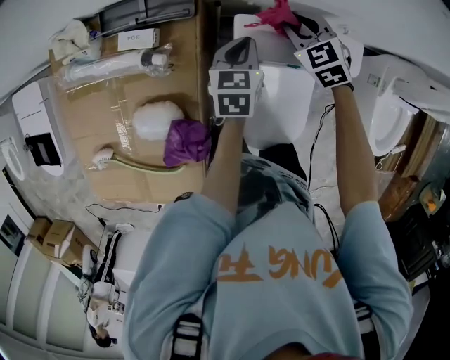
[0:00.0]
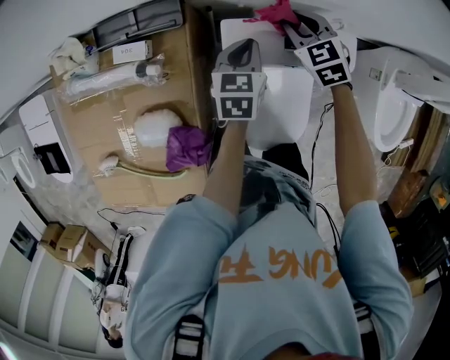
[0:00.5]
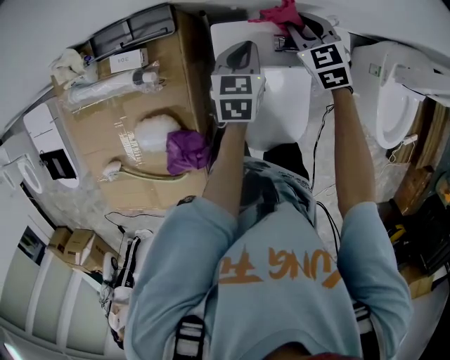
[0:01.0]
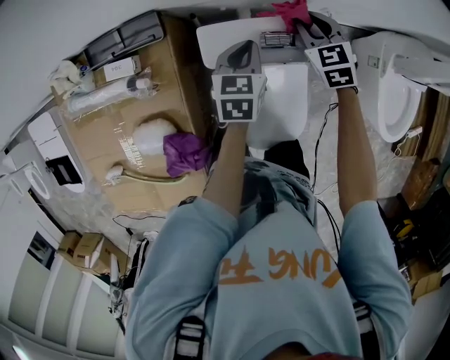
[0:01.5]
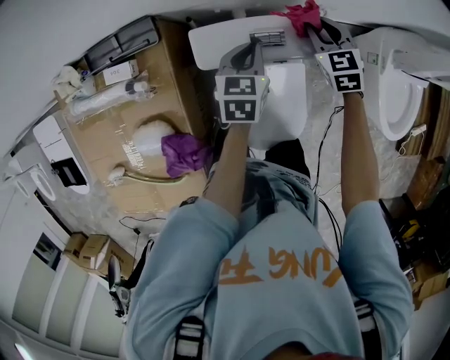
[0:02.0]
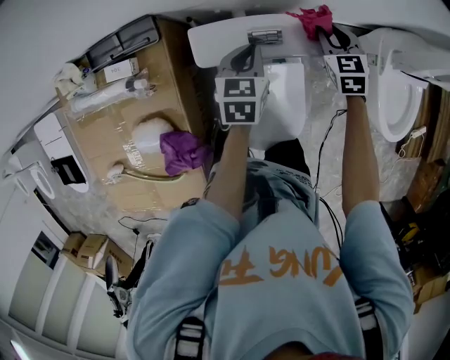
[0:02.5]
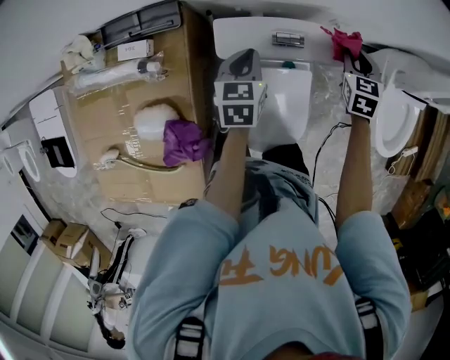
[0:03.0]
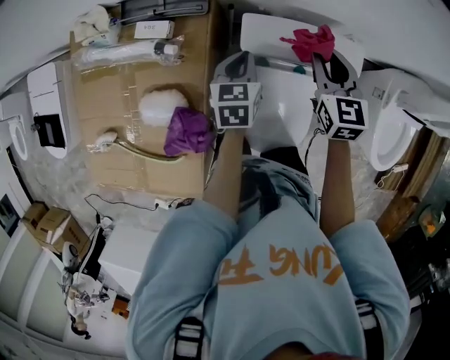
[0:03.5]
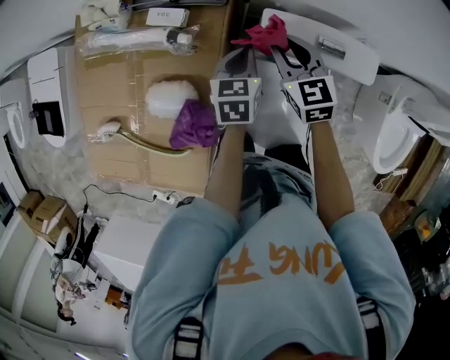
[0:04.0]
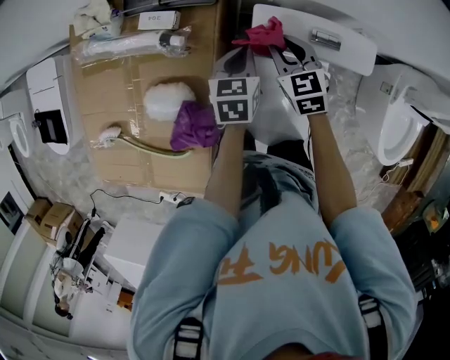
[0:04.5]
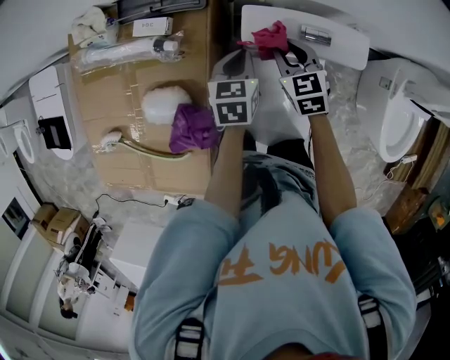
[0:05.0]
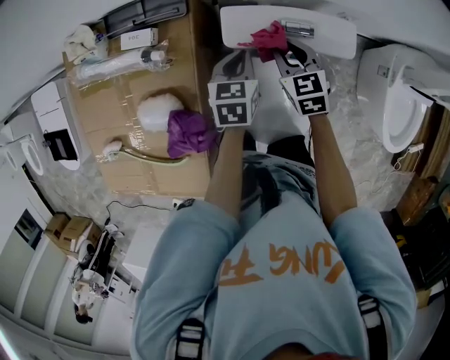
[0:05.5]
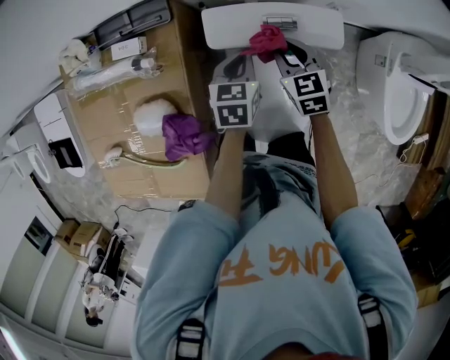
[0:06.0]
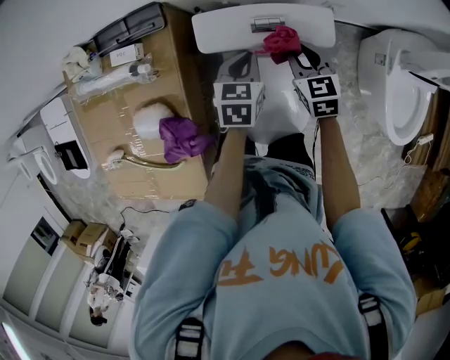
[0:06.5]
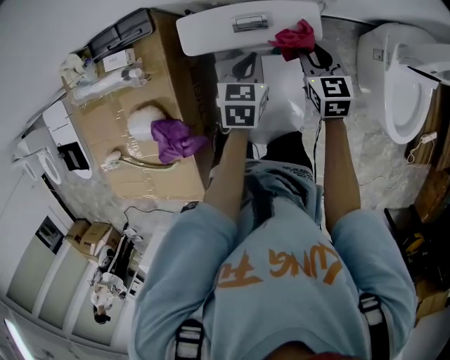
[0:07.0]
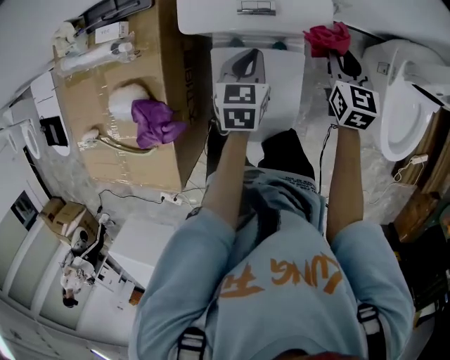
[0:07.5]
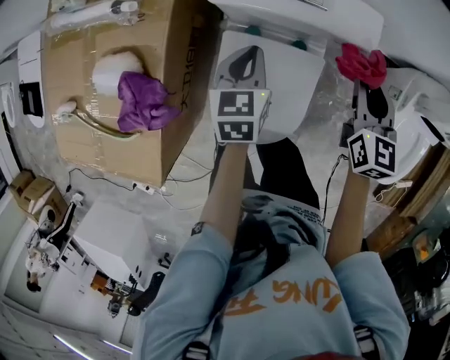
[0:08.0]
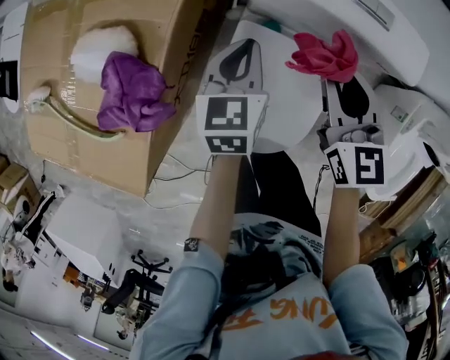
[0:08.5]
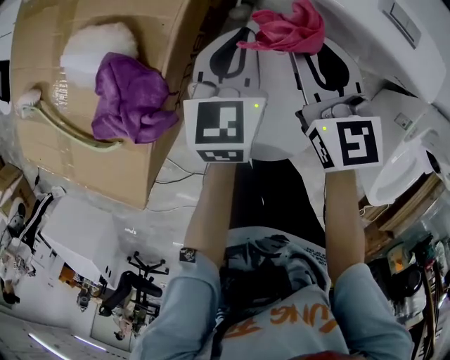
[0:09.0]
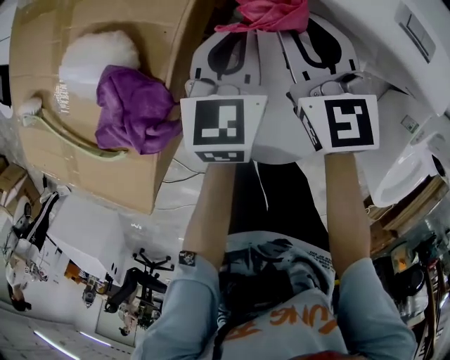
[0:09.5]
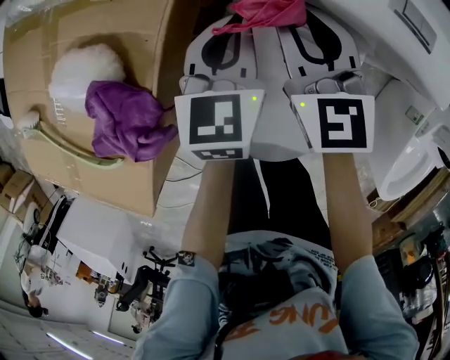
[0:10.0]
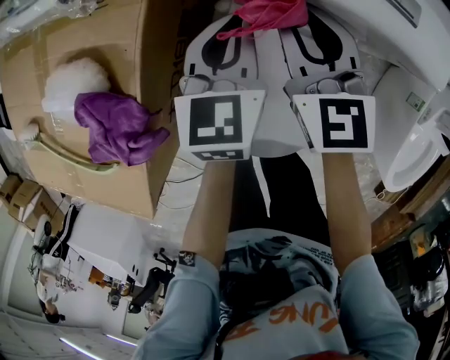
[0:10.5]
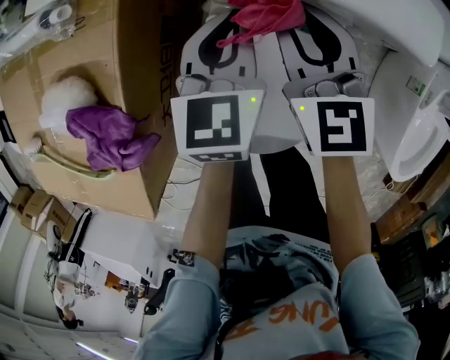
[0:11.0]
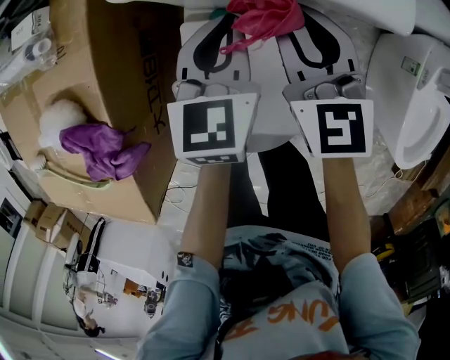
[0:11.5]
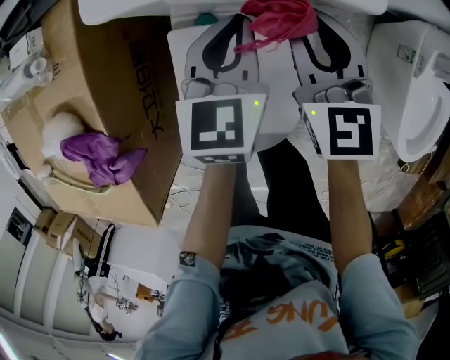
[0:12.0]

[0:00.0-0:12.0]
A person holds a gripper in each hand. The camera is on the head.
0:00.0 to 0:02.0: The right gripper is displaced to the right by some 20 cm, and swivels some 20 degrees. The left gripper goes some 15 cm to the right.
0:02.0 to 0:04.0: The right gripper moves some 30 cm, and turns by some 20 degrees. The left gripper shifts by about 20 cm, and changes its angle by approximately 20 degrees.
0:04.0 to 0:06.0: The two grippers go approximately 15 cm to the right.
0:06.0 to 0:08.0: The left gripper shifts approximately 10 cm backward and downward, and reaches roughly 10 cm to the right, then returns. Meanwhile the right gripper shifts roughly 15 cm to the right.
0:08.0 to 0:10.0: The left gripper heads to the left, forward and downward, covering some 15 cm. Meanwhile the right gripper moves to the left and forward, about 30 cm, and changes its angle by some 30 degrees.
0:10.0 to 0:12.0: Both grippers travel together to the right, about 20 cm.

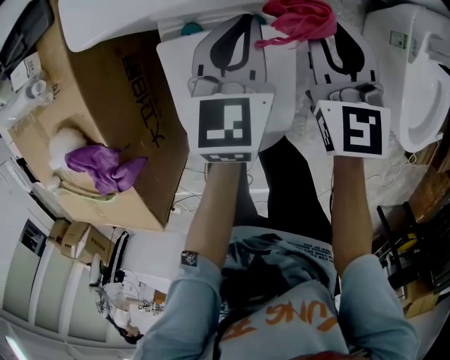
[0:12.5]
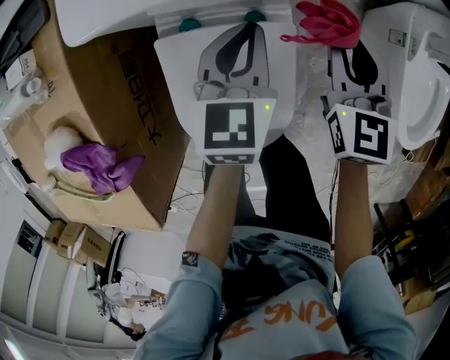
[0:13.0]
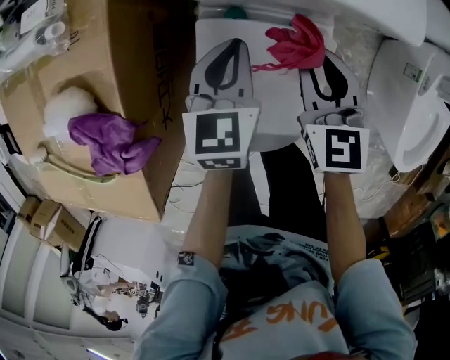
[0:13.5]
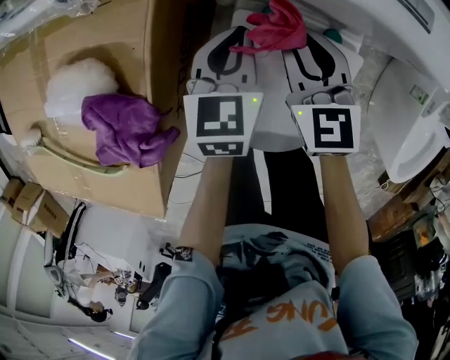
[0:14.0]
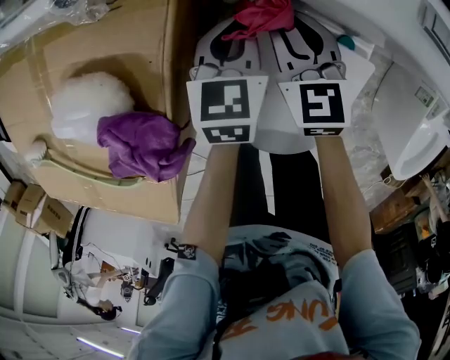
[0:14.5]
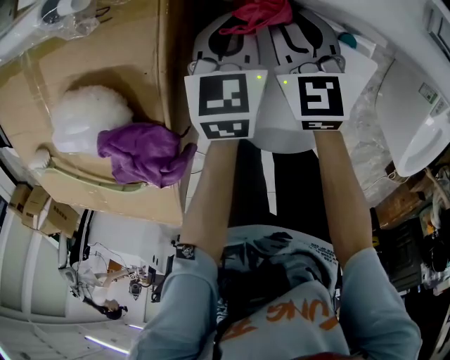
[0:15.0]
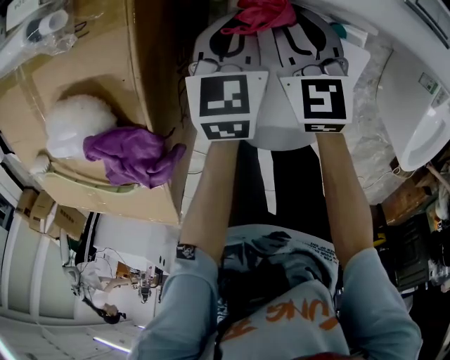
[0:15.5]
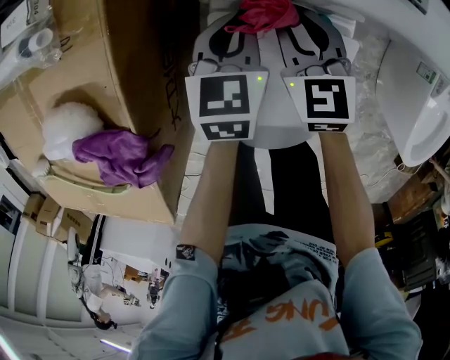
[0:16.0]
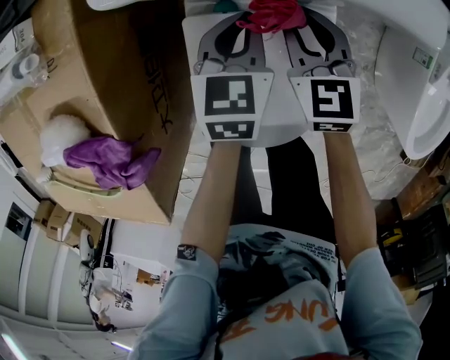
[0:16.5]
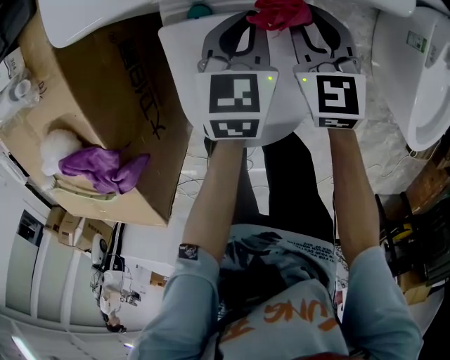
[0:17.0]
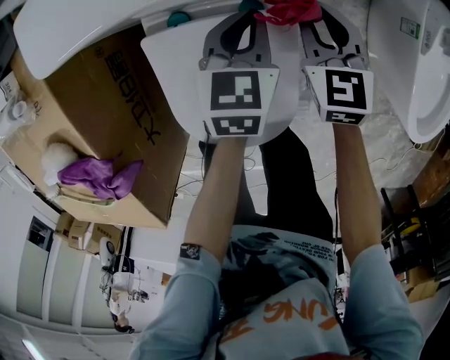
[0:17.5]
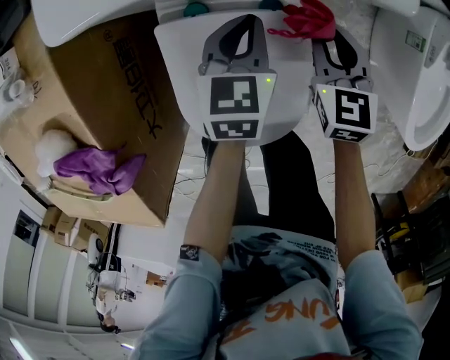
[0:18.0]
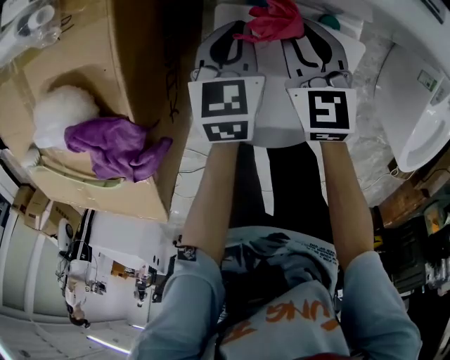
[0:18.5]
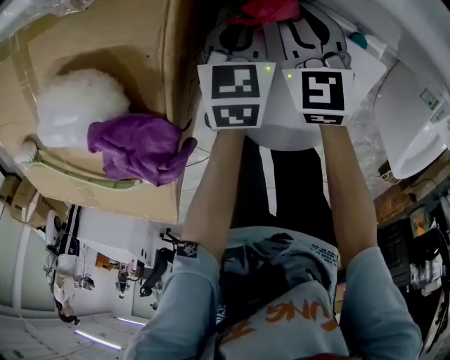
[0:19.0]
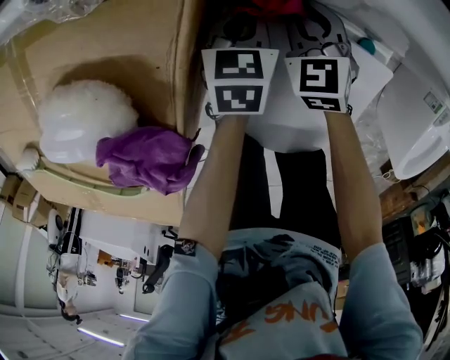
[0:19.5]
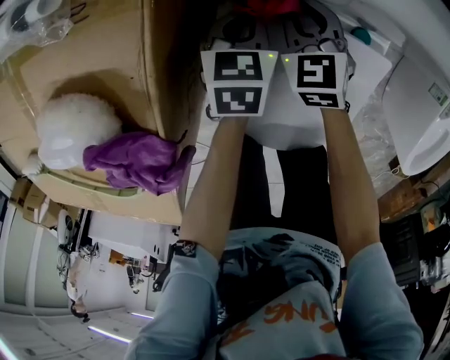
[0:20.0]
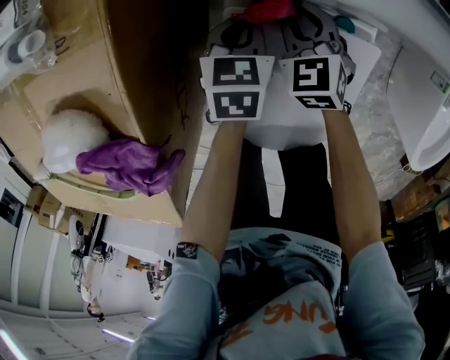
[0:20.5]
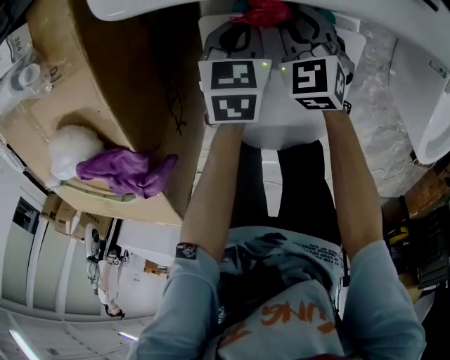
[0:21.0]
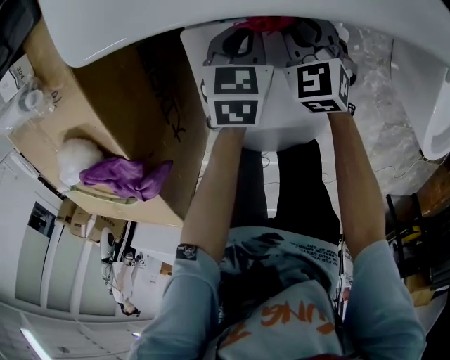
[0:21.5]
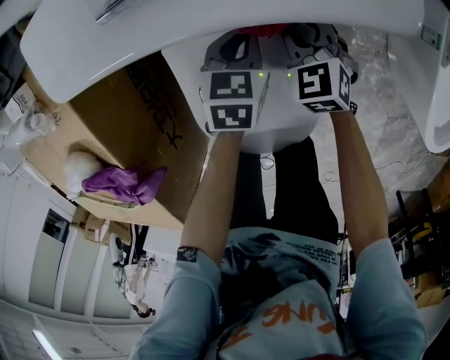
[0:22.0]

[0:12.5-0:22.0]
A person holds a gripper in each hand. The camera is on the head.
0:12.5 to 0:14.5: Both grippers move to the left, approximately 30 cm. The left gripper swivels roughly 20 degrees. The right gripper turns by about 30 degrees.
0:14.5 to 0:16.5: The grippers both shift to the right by roughly 15 cm.
0:16.5 to 0:18.0: The left gripper shifts approximately 5 cm to the right; the right gripper moves to the right, about 10 cm.
0:18.0 to 0:20.0: Both grippers travel together to the left, some 25 cm. The right gripper rotates approximately 30 degrees.
0:20.0 to 0:22.0: Both grippers travel together to the right, about 20 cm. The left gripper changes its angle by roughly 20 degrees.

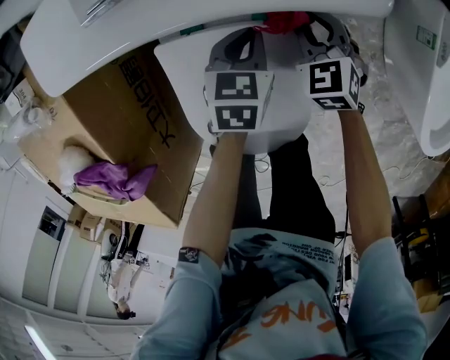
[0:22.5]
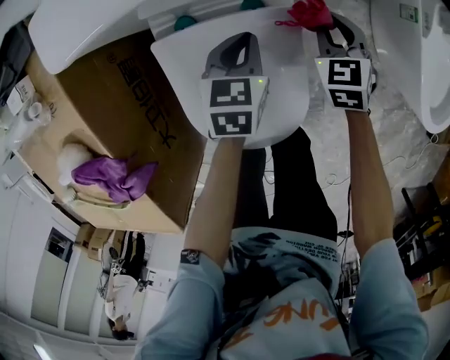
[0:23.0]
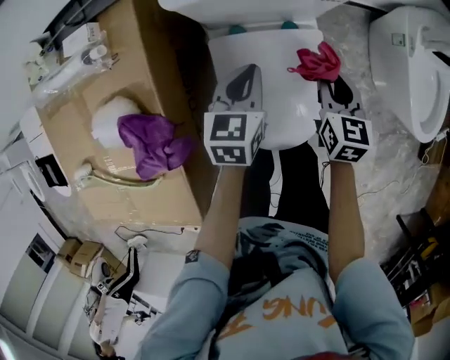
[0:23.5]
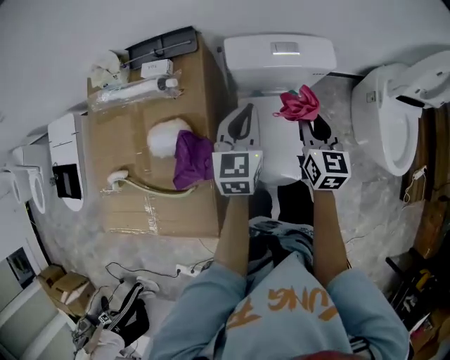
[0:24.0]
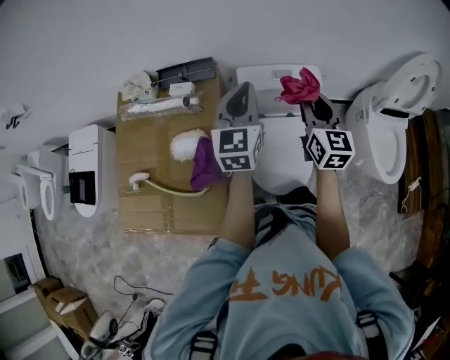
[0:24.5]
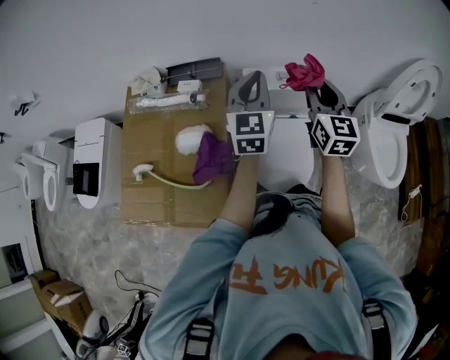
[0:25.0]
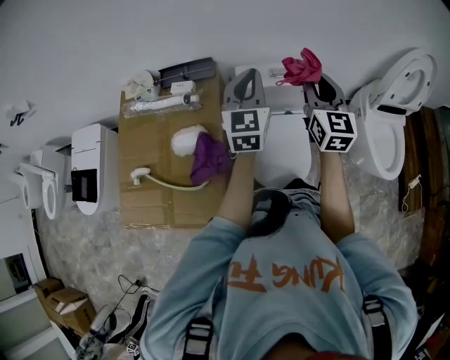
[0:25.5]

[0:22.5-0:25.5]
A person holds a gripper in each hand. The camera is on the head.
0:22.5 to 0:24.0: The left gripper heads upward and to the left, covering approximately 40 cm, and points its fingers some 30 degrees further upward. Meanwhile the right gripper goes roughly 40 cm upward and backward, and turns by approximately 40 degrees.
0:24.0 to 0:25.5: Both grippers travel together upward, some 20 cm. The left gripper swivels roughly 20 degrees. Meanwhile the right gripper turns by about 20 degrees.

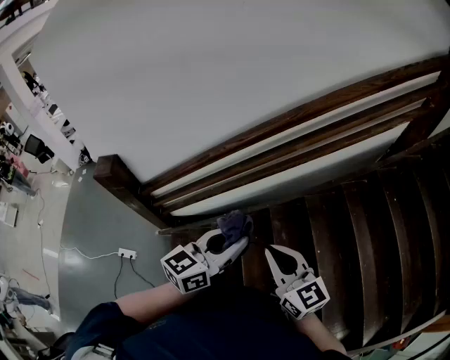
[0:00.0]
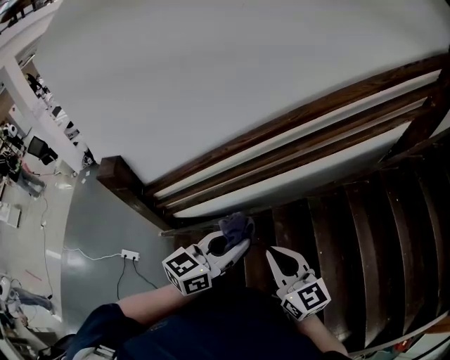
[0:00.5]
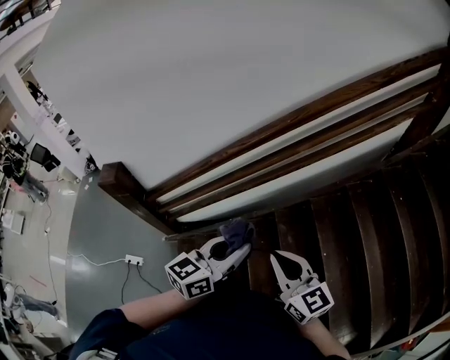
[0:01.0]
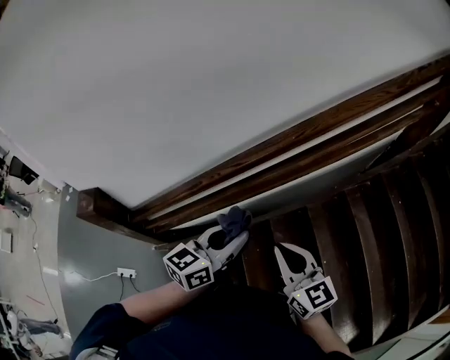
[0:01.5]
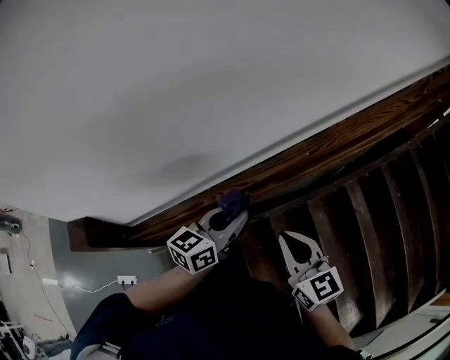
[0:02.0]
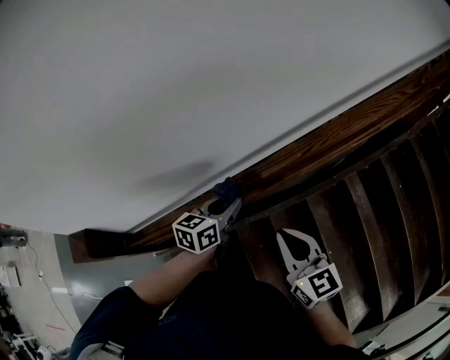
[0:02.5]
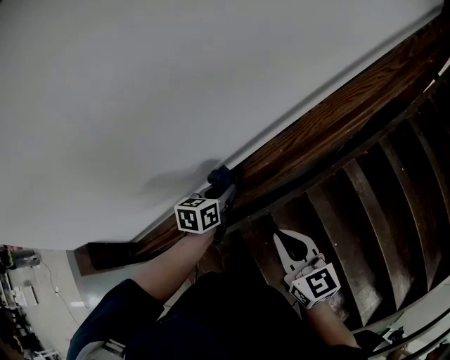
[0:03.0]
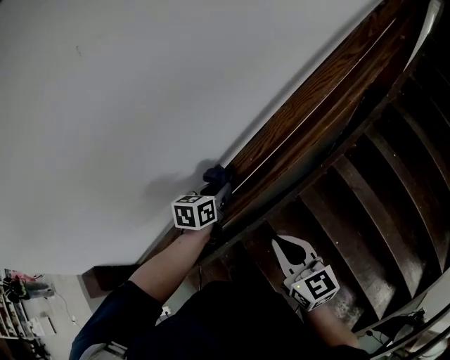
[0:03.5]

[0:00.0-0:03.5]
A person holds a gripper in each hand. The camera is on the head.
0:00.0 to 0:02.0: Both grippers move forward, some 30 cm.
0:02.0 to 0:03.5: The left gripper is displaced forward, to the right and downward by about 20 cm, and rotates about 30 degrees; the right gripper moves to the right, roughly 10 cm.
